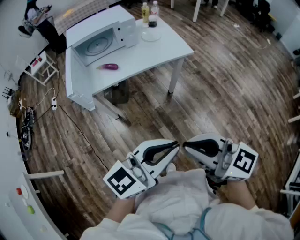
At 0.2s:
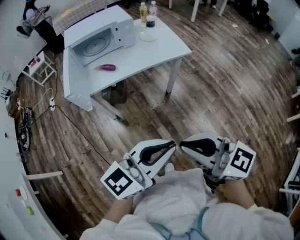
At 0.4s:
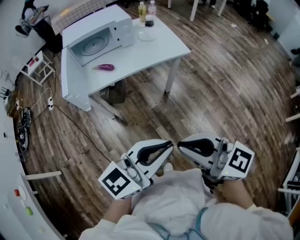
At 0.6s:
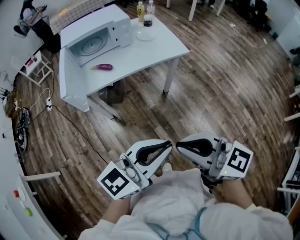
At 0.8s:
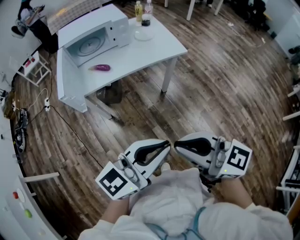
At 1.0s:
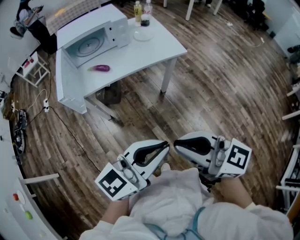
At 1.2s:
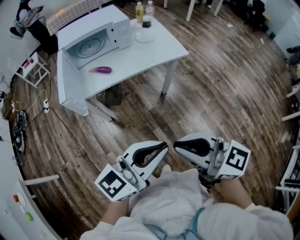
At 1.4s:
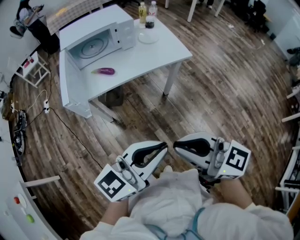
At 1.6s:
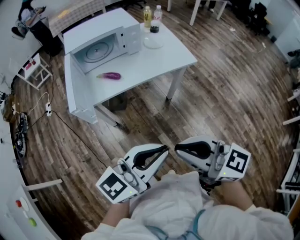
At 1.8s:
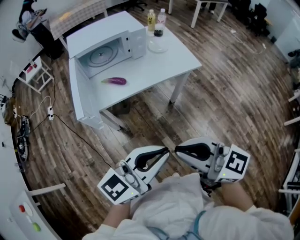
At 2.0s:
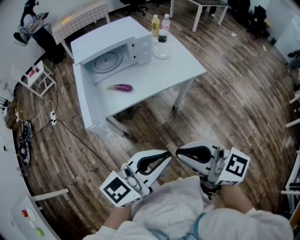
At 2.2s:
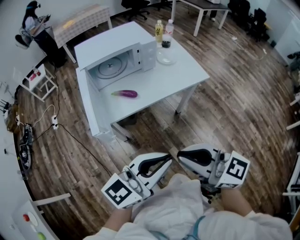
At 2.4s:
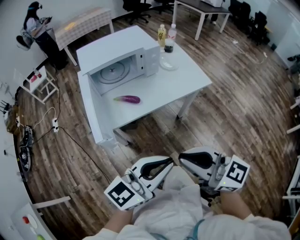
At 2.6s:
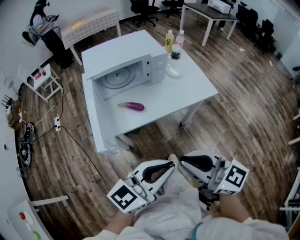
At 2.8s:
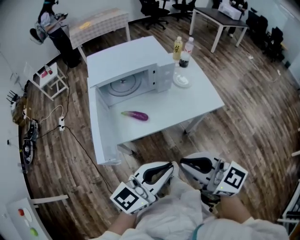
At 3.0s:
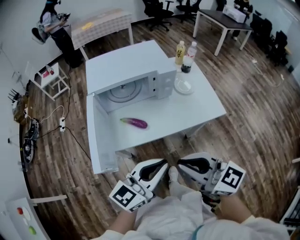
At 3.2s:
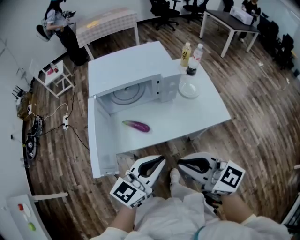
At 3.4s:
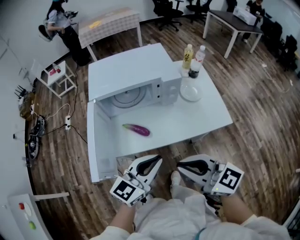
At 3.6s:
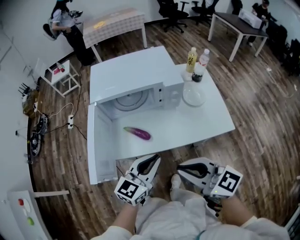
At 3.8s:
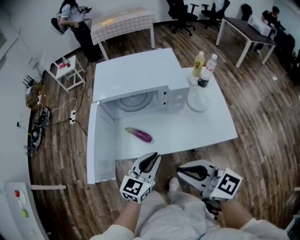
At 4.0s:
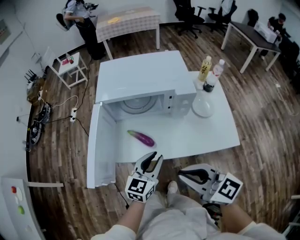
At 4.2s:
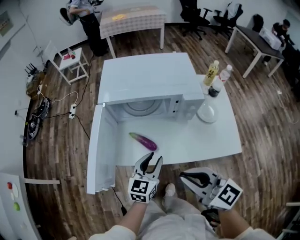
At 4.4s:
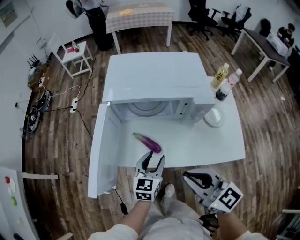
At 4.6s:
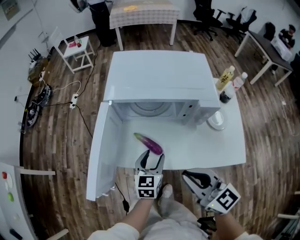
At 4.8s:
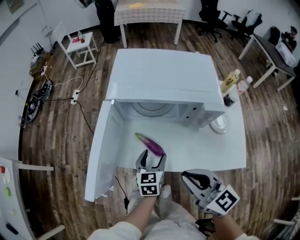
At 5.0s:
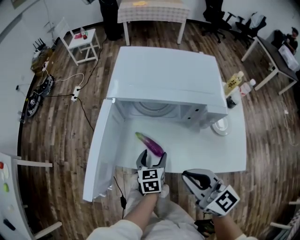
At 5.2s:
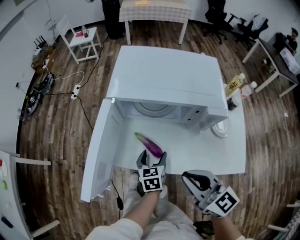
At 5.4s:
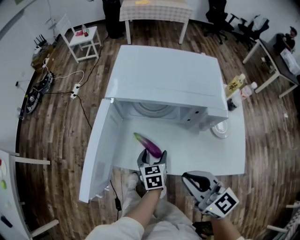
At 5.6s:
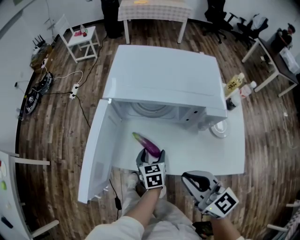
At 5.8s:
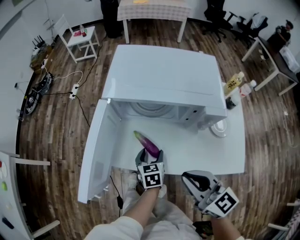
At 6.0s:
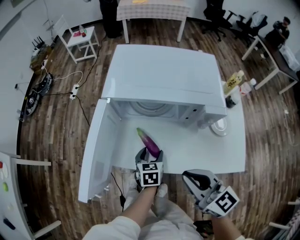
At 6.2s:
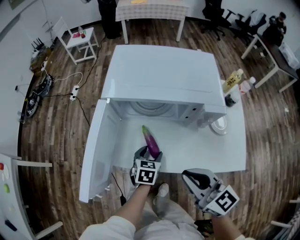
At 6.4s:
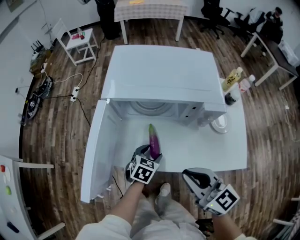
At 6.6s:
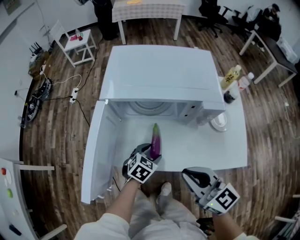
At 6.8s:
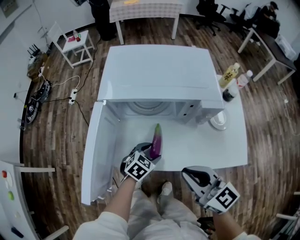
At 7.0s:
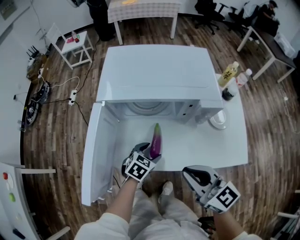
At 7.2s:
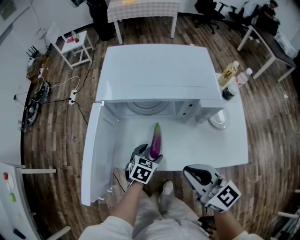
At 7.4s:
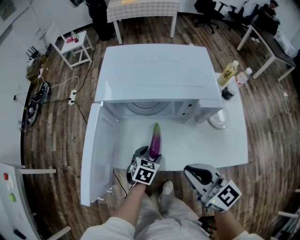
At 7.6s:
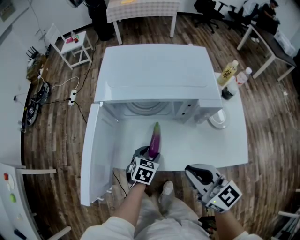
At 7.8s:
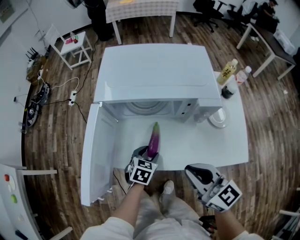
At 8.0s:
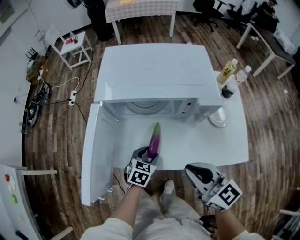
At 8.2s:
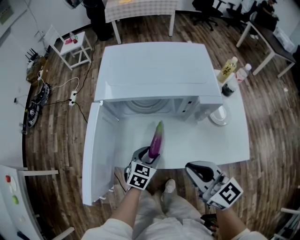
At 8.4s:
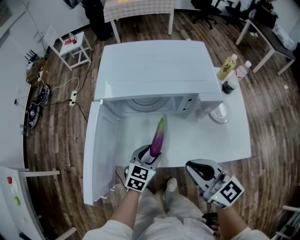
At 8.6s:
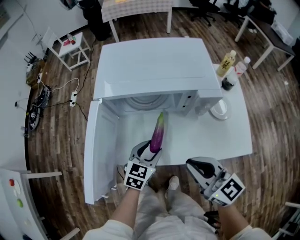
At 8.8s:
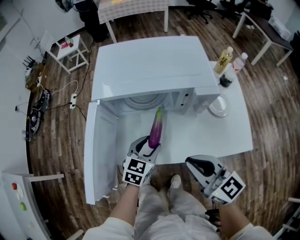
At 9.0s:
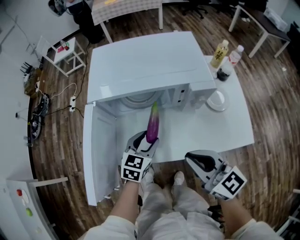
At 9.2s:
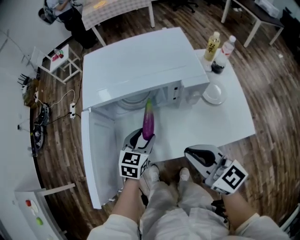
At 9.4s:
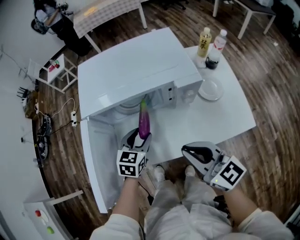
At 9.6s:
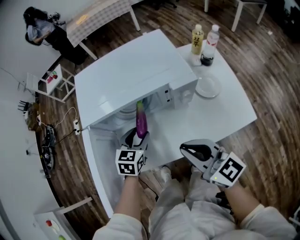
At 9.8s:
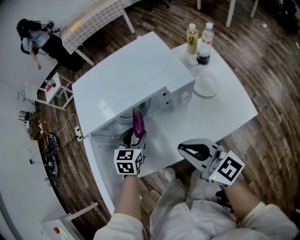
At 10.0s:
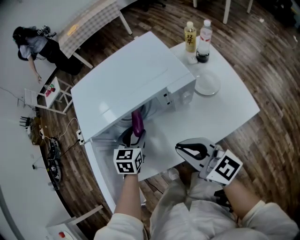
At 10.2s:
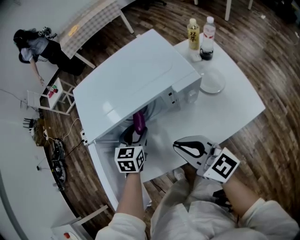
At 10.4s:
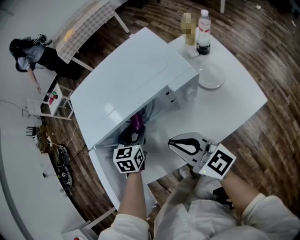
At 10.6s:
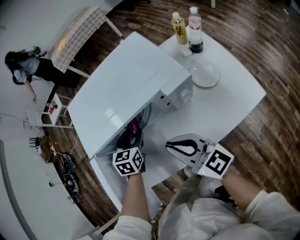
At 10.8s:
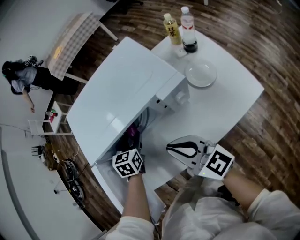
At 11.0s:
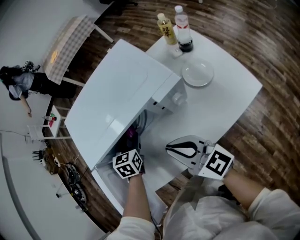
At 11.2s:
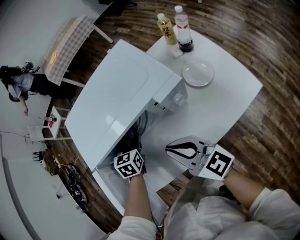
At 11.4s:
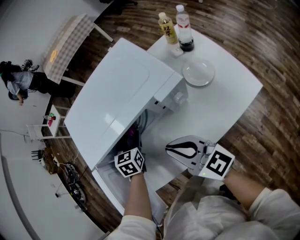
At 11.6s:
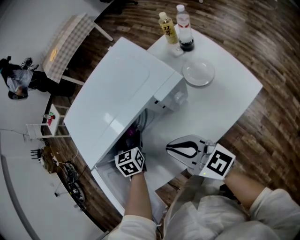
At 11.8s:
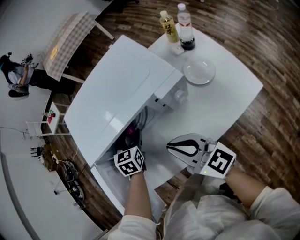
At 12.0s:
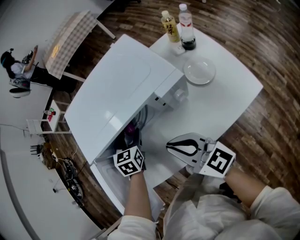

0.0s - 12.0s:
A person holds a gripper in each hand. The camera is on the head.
0.0s - 1.6s: The right gripper moves forward and to the left, some 10 cm, while the left gripper goes some 10 cm to the left and forward.
1.6s - 3.0s: The two grippers go some 25 cm forward.
3.0s - 4.4s: The left gripper goes approximately 30 cm forward and downward, changes its angle by roughly 50 degrees, and opens up. The right gripper heads forward and downward, covering about 15 cm.
4.4s - 6.0s: The right gripper moves some 5 cm. Meanwhile the left gripper shifts about 10 cm downward and forward, and swivels some 30 degrees.
6.0s - 7.6s: The left gripper rotates some 30 degrees.
7.6s - 9.0s: The left gripper shifts about 10 cm upward.
9.0s - 10.4s: Both grippers travel together forward, roughly 10 cm.
10.4s - 12.0s: The grippers move only a little.

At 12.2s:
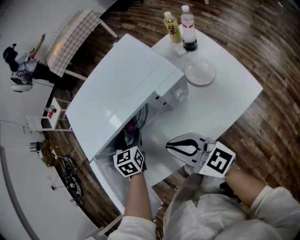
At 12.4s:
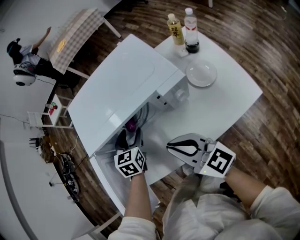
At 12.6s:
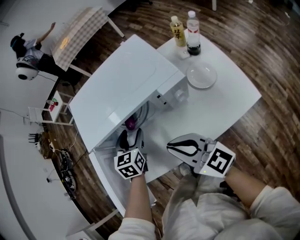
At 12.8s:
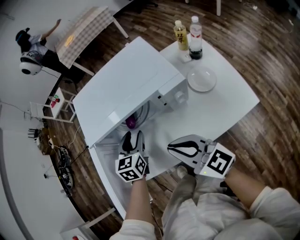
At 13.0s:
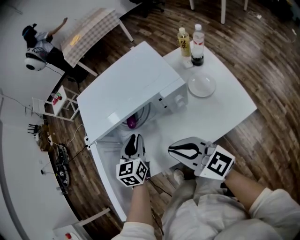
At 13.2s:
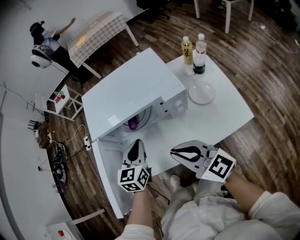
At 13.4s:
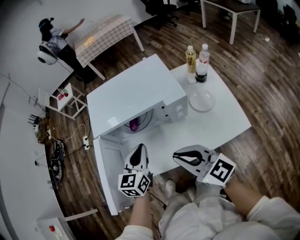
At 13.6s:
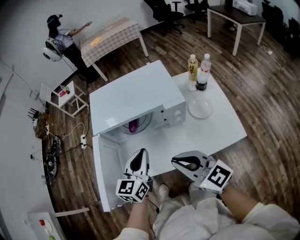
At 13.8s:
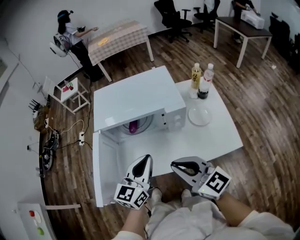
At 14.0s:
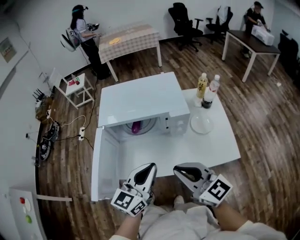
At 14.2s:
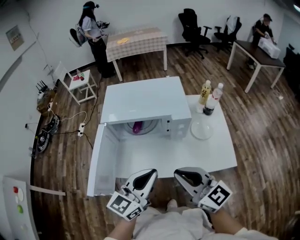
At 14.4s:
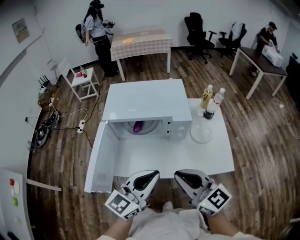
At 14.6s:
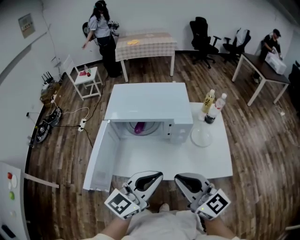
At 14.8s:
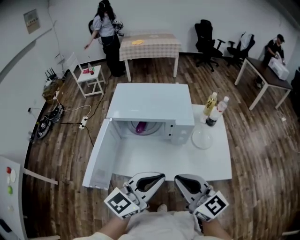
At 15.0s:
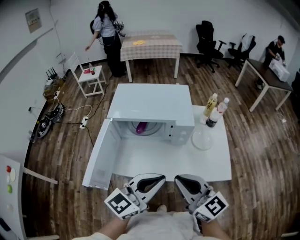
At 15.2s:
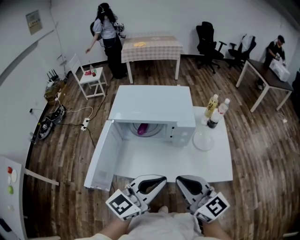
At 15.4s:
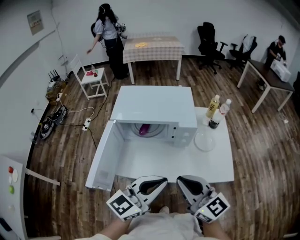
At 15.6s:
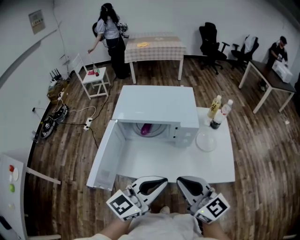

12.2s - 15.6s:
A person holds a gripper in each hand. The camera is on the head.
12.2s - 13.8s: The left gripper is displaced backward and upward by approximately 30 cm, angles its fingers upward, by approximately 30 degrees, and closes its fingers; the right gripper goes about 15 cm backward and upward.
13.8s - 15.6s: The left gripper is displaced backward, upward and to the right by approximately 15 cm. Meanwhile the right gripper ends up about 5 cm from where it was.

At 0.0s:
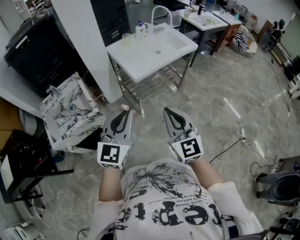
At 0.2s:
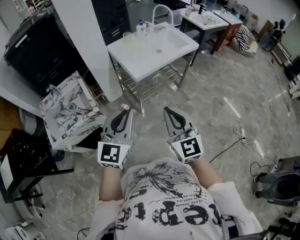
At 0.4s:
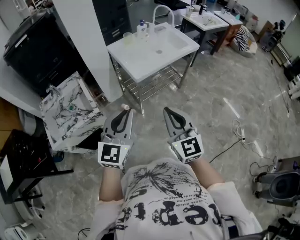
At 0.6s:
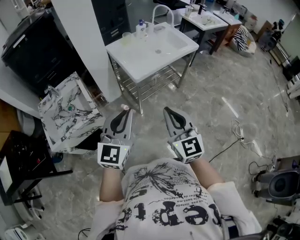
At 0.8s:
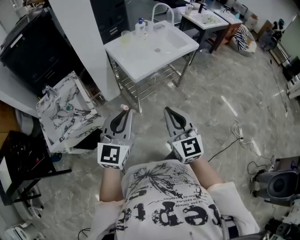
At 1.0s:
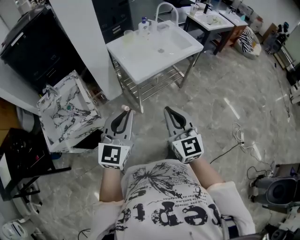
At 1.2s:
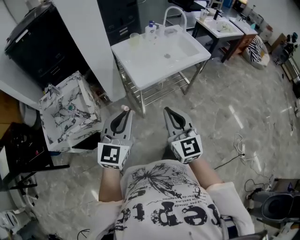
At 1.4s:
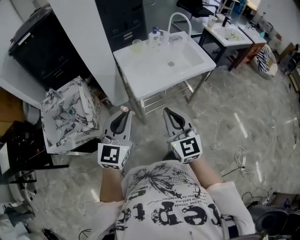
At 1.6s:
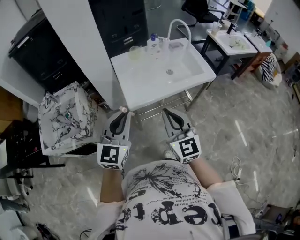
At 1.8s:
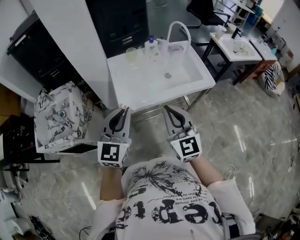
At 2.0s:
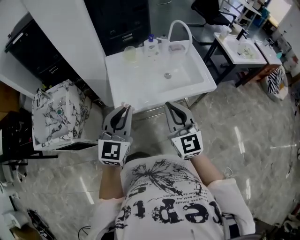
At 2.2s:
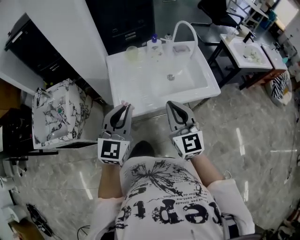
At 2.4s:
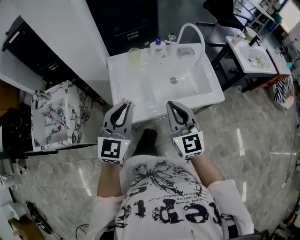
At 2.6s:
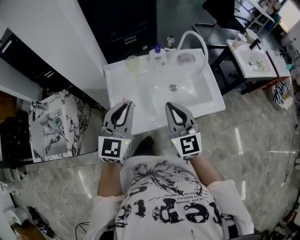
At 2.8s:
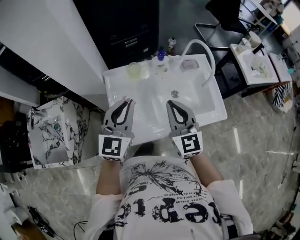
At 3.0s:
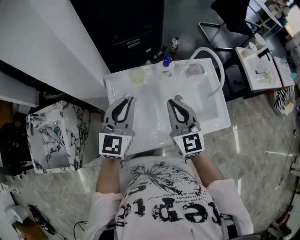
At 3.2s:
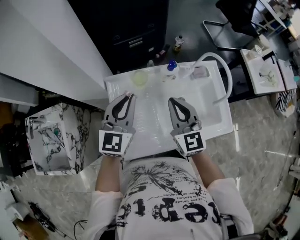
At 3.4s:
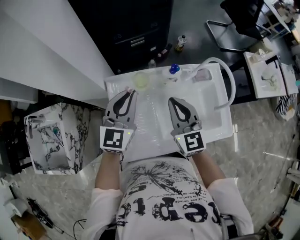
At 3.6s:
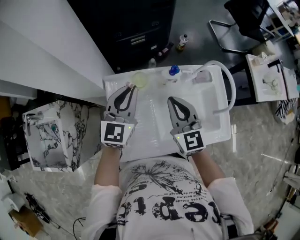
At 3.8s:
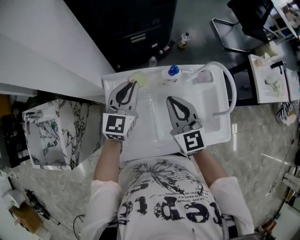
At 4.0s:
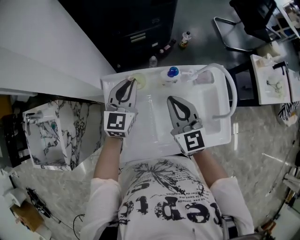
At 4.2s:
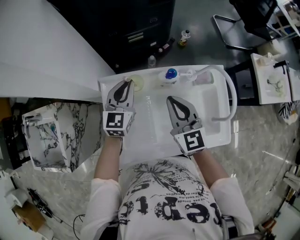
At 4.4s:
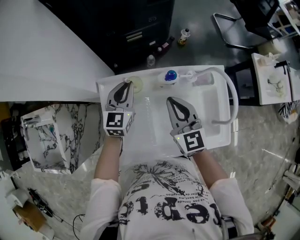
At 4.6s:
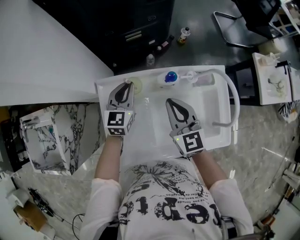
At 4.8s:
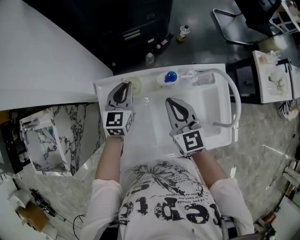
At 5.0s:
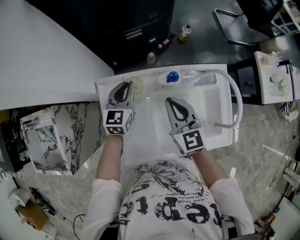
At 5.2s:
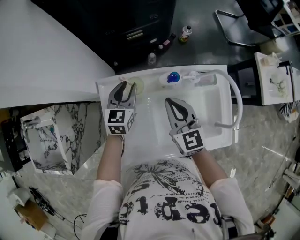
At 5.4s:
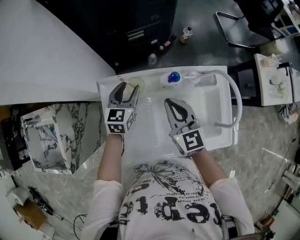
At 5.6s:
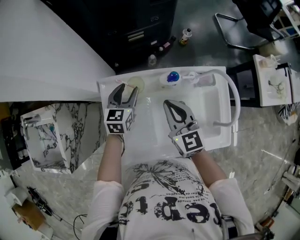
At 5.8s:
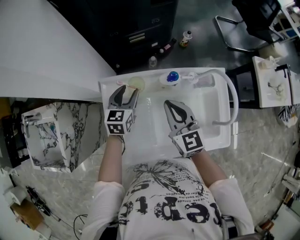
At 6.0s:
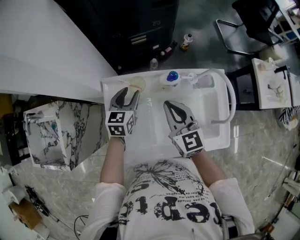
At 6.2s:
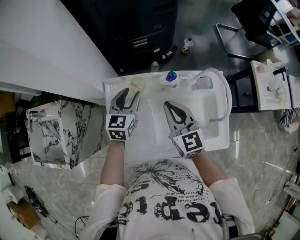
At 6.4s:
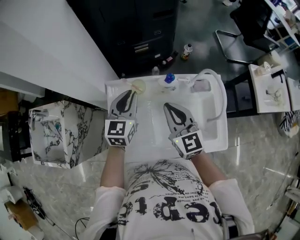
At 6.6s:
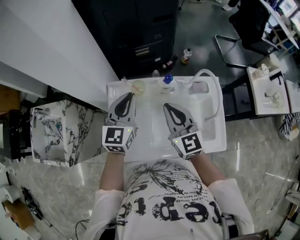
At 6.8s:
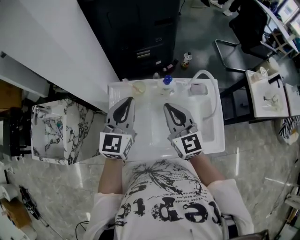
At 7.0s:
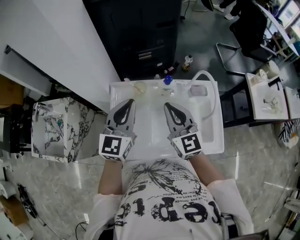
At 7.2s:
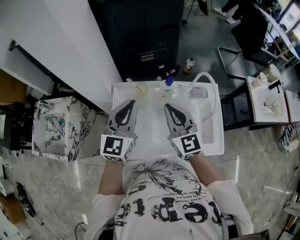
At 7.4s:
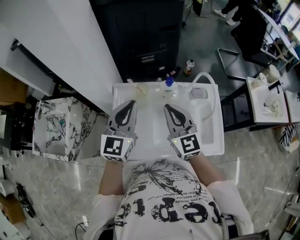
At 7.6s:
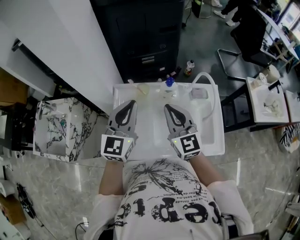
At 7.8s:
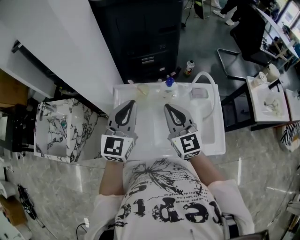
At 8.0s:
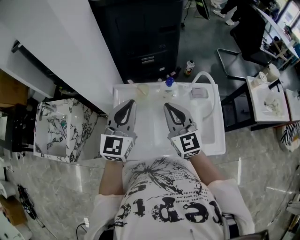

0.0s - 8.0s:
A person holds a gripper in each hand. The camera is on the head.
0.0s - 1.6s: The grippers both shift forward by about 25 cm.
1.6s - 3.2s: Both grippers are carried forward, some 50 cm.
3.2s - 4.8s: The left gripper shifts about 20 cm downward and forward, and turns by approximately 20 degrees; the right gripper shifts some 10 cm forward and downward.
4.8s - 6.4s: Both grippers move upward and backward, approximately 10 cm. The left gripper opens and closes again.
6.4s - 8.0s: The right gripper heads upward, covering some 5 cm. Meanwhile the left gripper is displaced upward and backward by roughly 15 cm.
